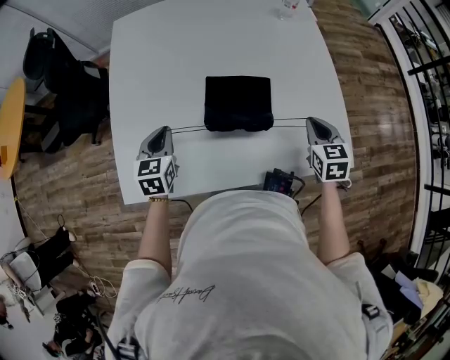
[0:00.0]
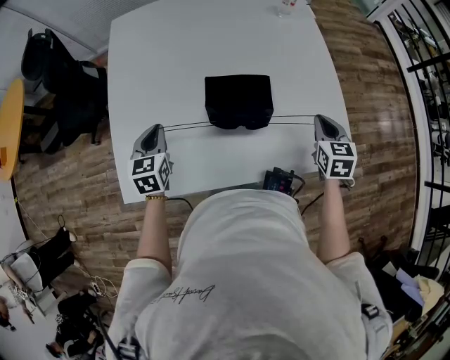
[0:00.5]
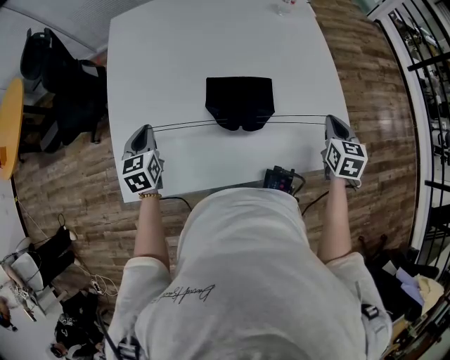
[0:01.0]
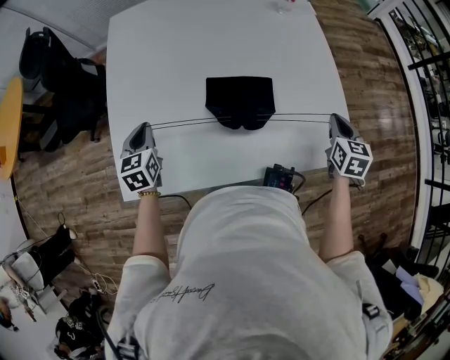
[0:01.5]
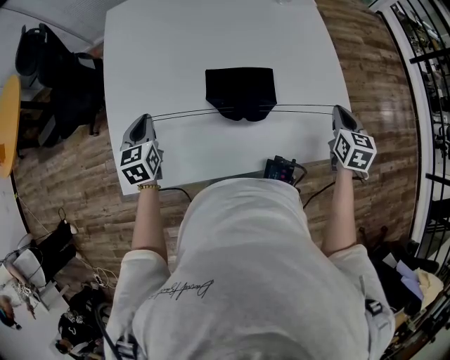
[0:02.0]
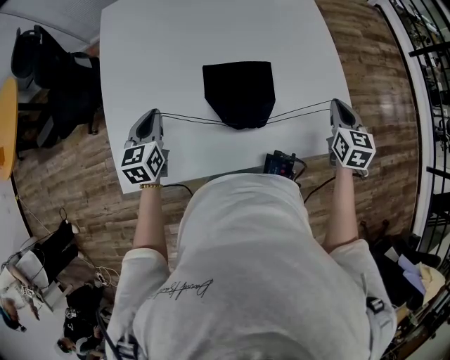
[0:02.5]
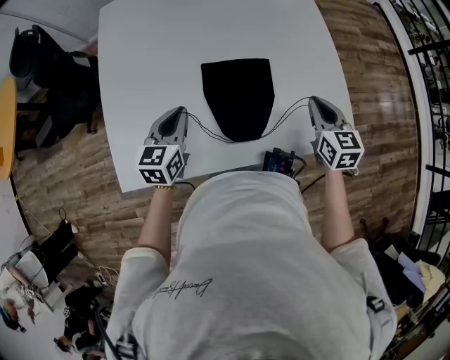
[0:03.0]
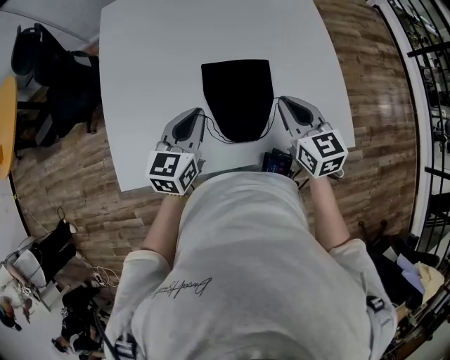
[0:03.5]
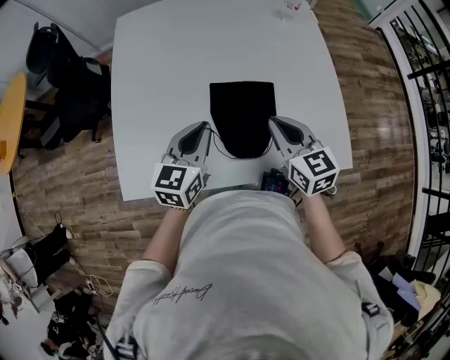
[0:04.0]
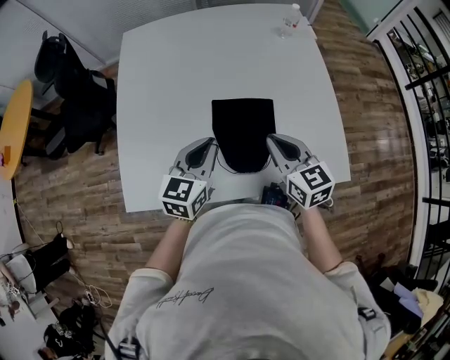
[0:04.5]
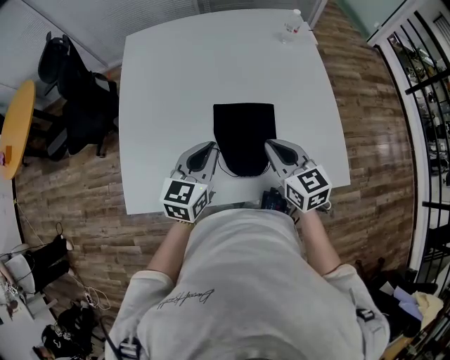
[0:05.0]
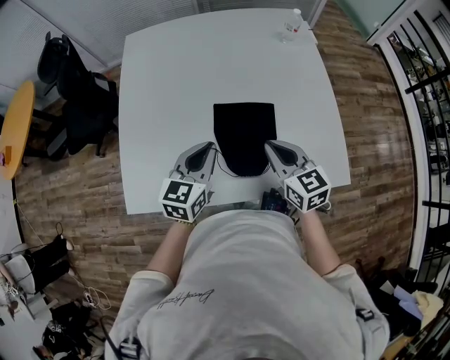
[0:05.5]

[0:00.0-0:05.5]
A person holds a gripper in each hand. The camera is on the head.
0:00.0 to 0:02.0: The left gripper heads to the left, covering approximately 5 cm. The right gripper is displaced to the right by roughly 10 cm.
0:02.0 to 0:03.5: The right gripper is displaced to the left by some 20 cm, and changes its angle by approximately 30 degrees; the left gripper heads to the right, covering approximately 20 cm, and swivels approximately 30 degrees.
0:03.5 to 0:05.5: The right gripper ends up about 5 cm from where it was.

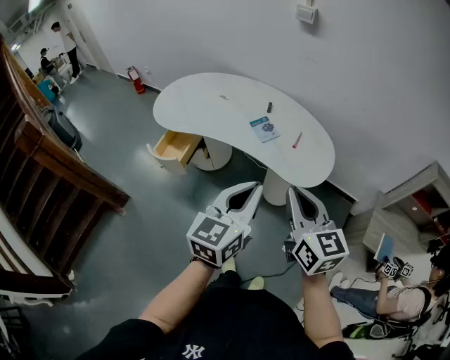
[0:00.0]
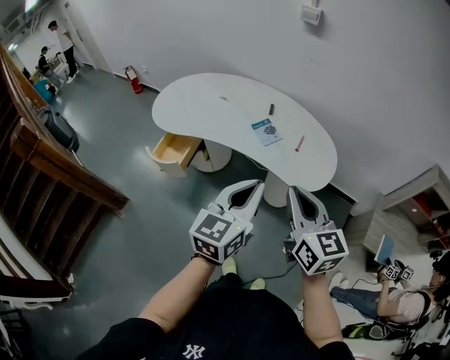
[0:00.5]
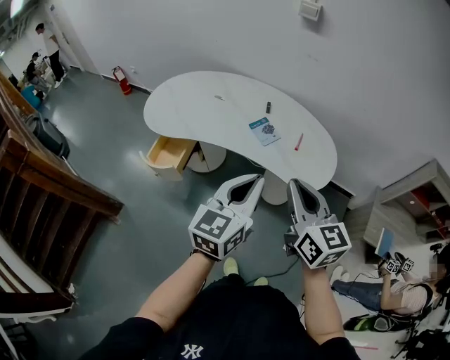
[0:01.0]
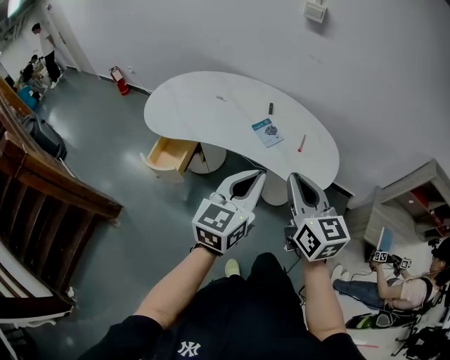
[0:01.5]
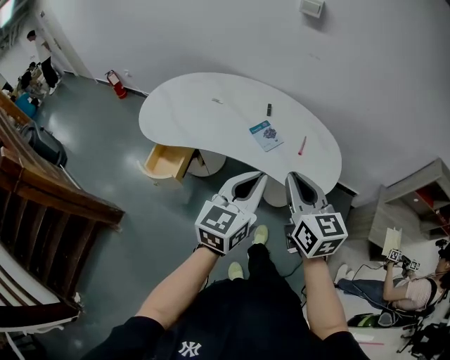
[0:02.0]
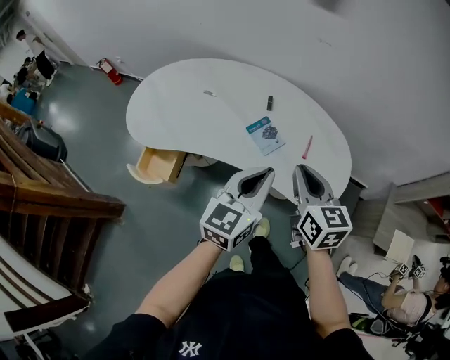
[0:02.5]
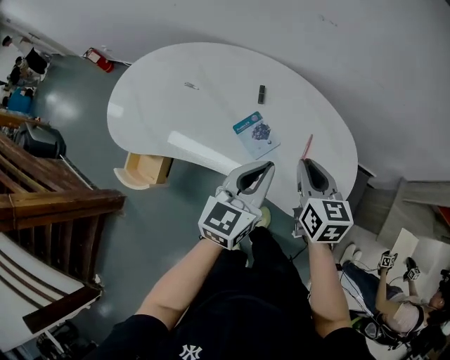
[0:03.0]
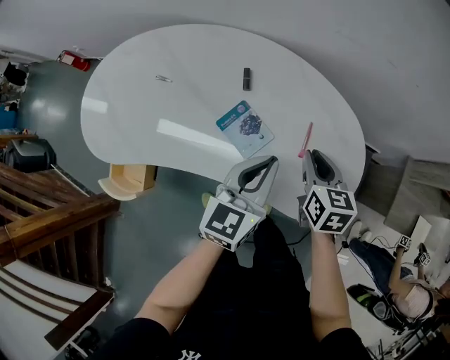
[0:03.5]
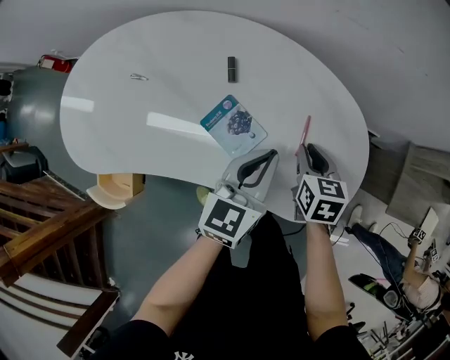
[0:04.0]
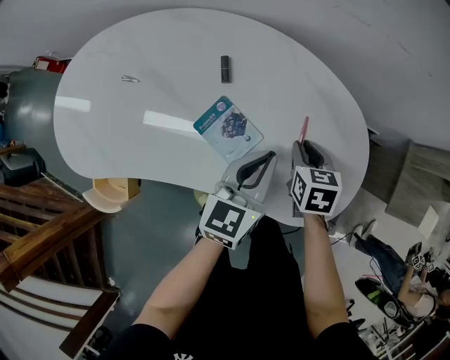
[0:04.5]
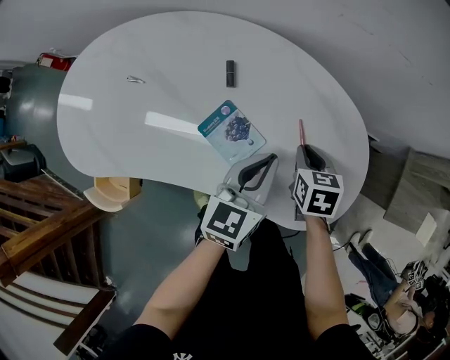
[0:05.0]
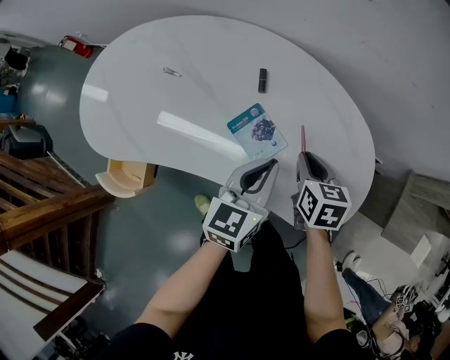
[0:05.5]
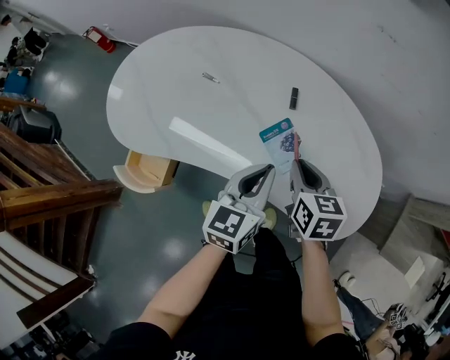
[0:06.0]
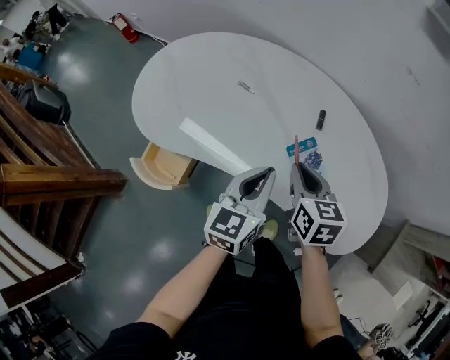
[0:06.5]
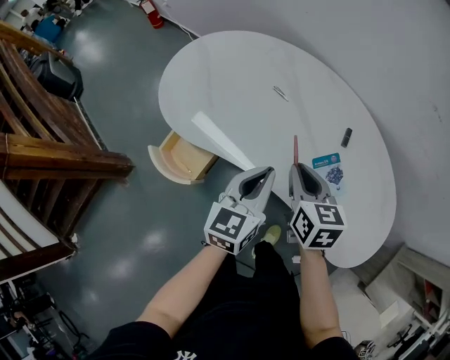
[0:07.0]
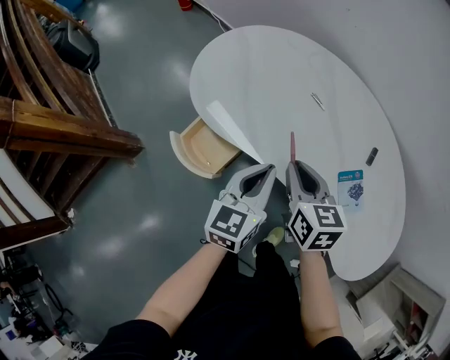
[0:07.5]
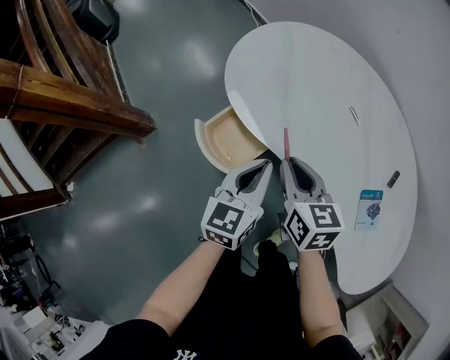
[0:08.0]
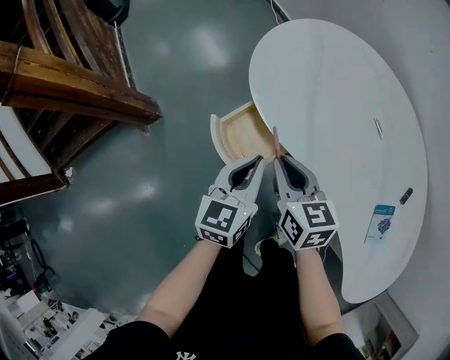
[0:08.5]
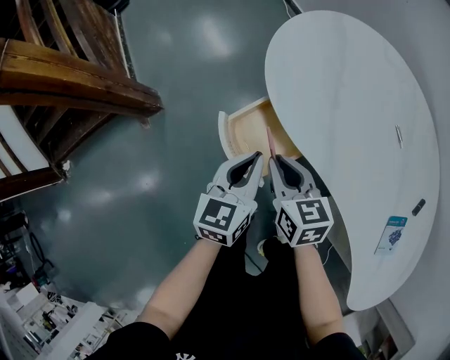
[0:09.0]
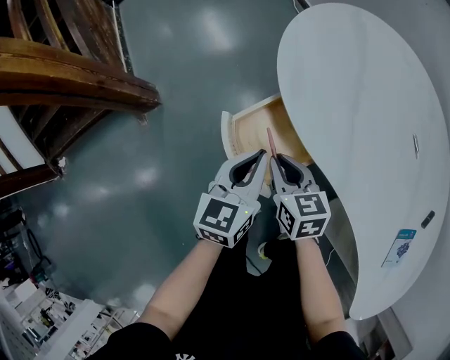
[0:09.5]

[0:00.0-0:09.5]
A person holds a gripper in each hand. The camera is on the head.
0:00.0 to 0:02.0: The grippers both shift forward and to the left by some 15 cm.
0:02.0 to 0:04.0: The right gripper travels downward and forward by about 50 cm, and angles its fingers downward, by roughly 40 degrees. The left gripper goes roughly 40 cm forward and downward.
0:04.0 to 0:05.5: The left gripper shifts by some 5 cm, while the right gripper shifts roughly 5 cm to the left.
0:05.5 to 0:07.5: The right gripper moves approximately 40 cm, and turns by about 30 degrees, while the left gripper shifts by some 35 cm, and rotates approximately 30 degrees.
0:07.5 to 0:09.5: The right gripper shifts approximately 35 cm to the left and downward, and turns by roughly 30 degrees. The left gripper heads to the left, downward and forward, covering roughly 30 cm, and swivels roughly 20 degrees.

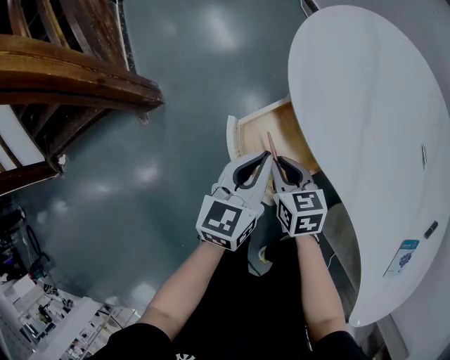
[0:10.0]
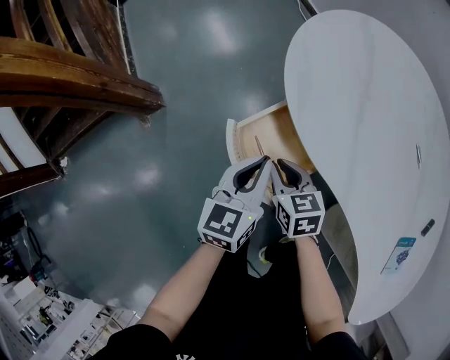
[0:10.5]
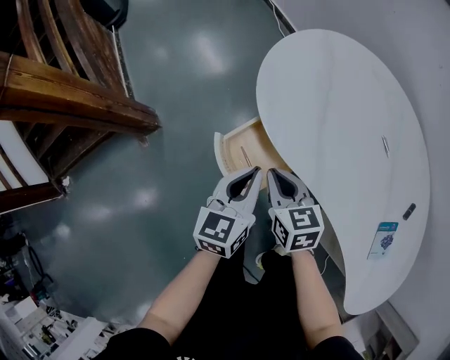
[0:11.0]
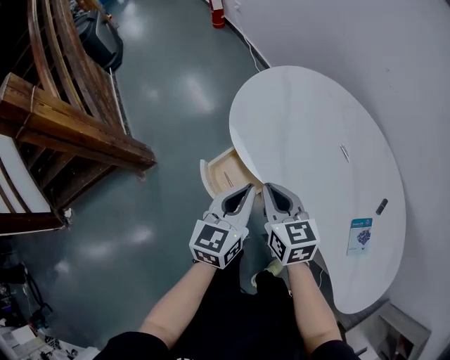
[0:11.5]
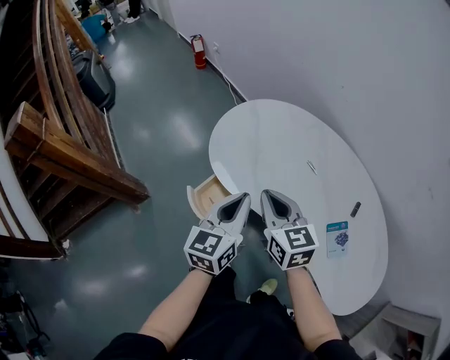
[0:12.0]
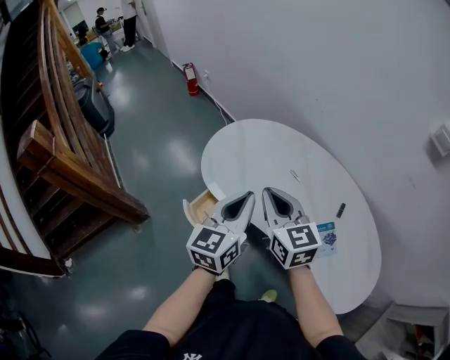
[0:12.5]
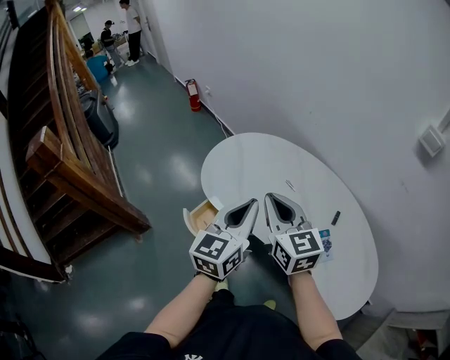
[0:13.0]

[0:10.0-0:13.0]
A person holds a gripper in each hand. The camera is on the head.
0:10.0 to 0:11.5: The two grippers go roughly 25 cm upward.
0:11.5 to 0:13.0: Both grippers move upward and to the right, roughly 25 cm. The right gripper changes its angle by approximately 20 degrees.

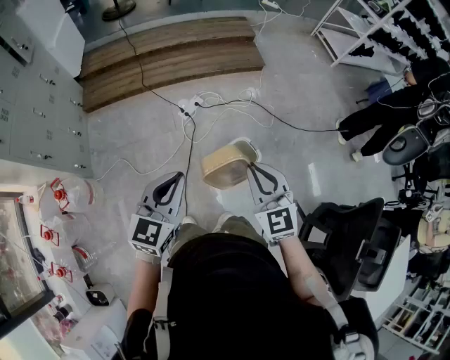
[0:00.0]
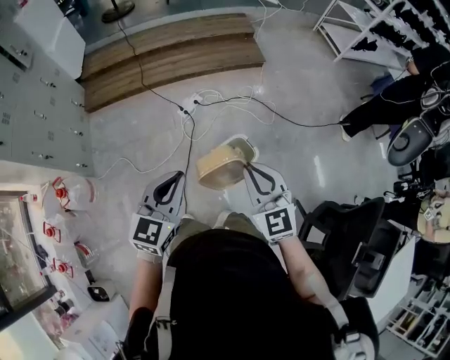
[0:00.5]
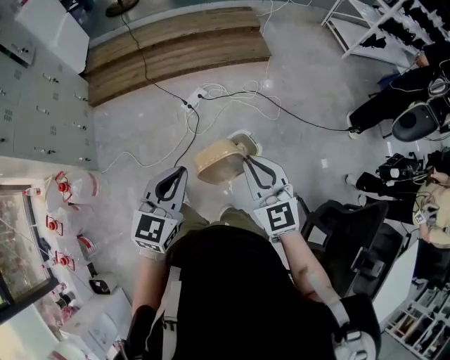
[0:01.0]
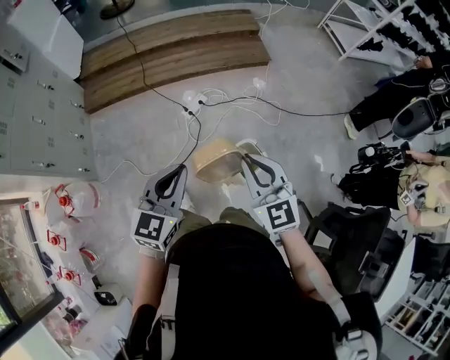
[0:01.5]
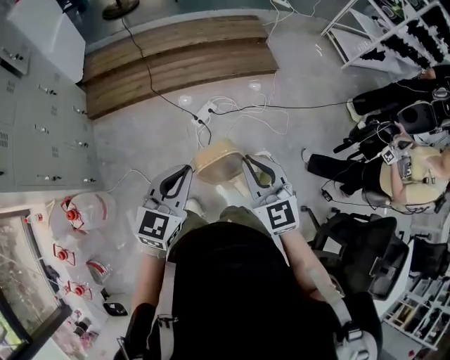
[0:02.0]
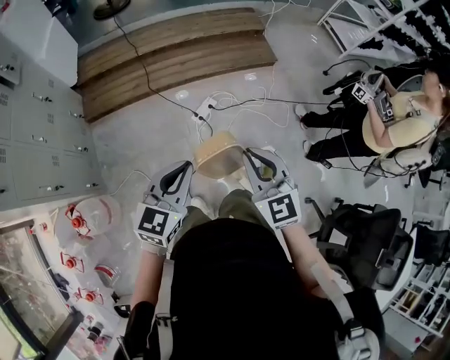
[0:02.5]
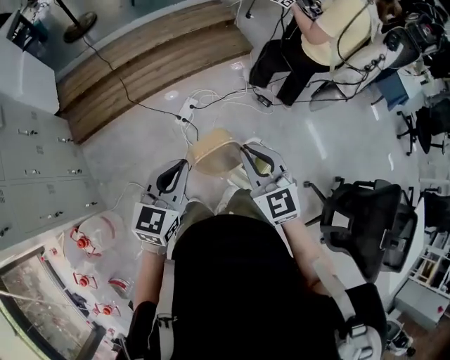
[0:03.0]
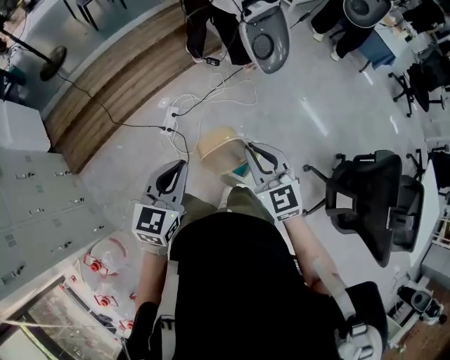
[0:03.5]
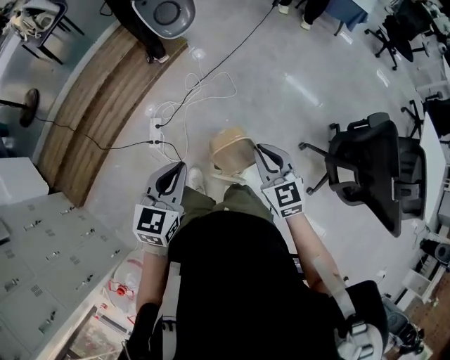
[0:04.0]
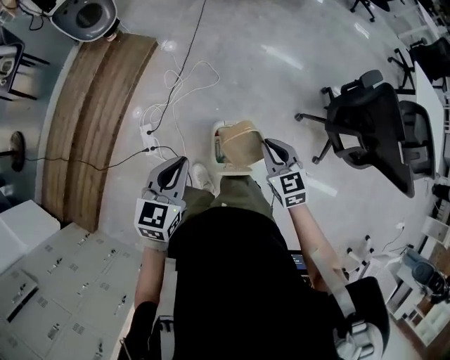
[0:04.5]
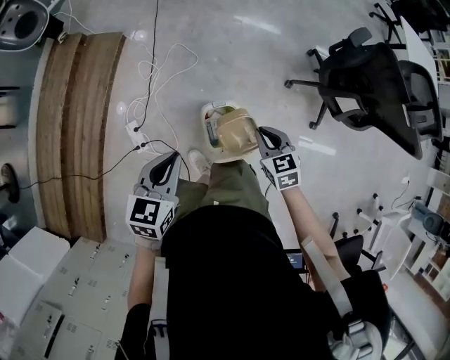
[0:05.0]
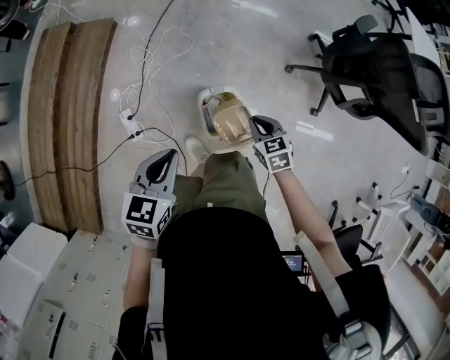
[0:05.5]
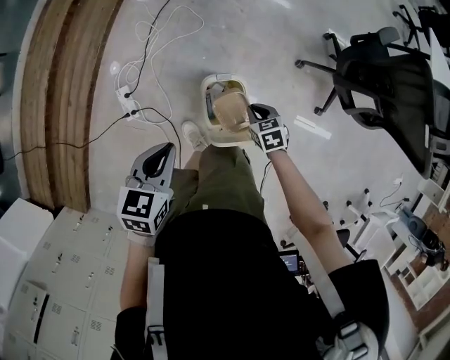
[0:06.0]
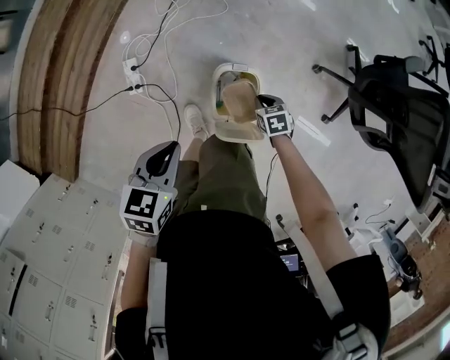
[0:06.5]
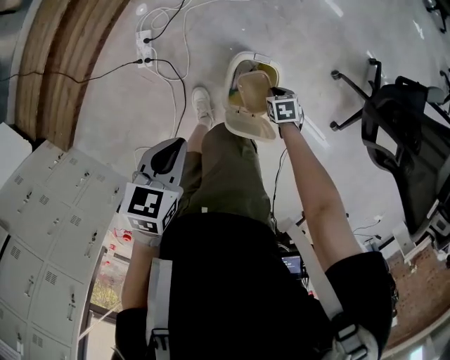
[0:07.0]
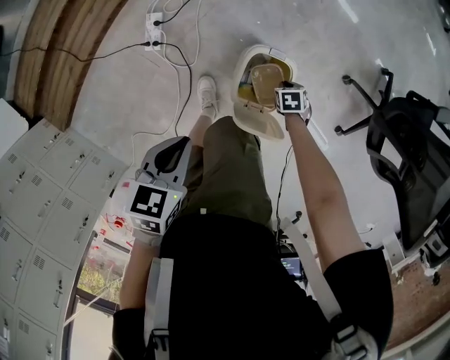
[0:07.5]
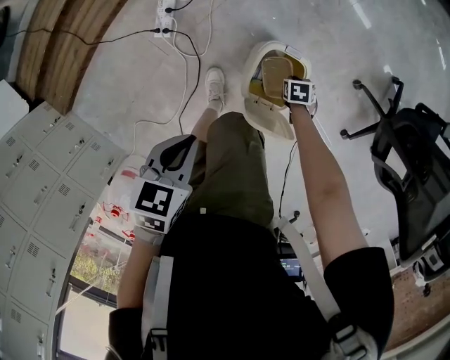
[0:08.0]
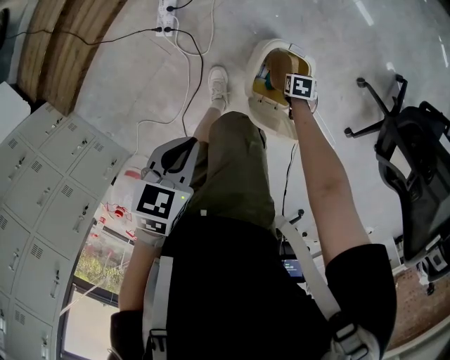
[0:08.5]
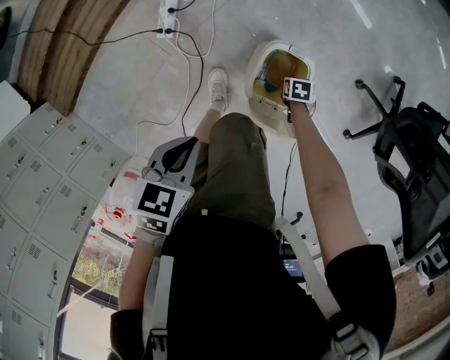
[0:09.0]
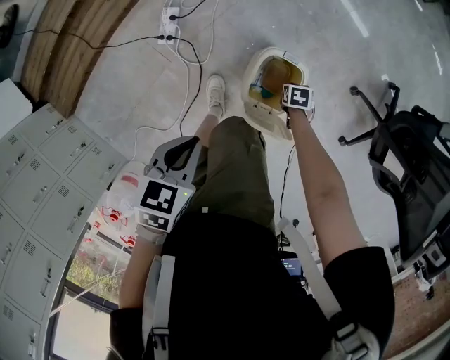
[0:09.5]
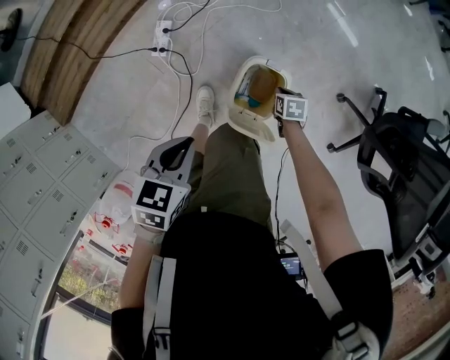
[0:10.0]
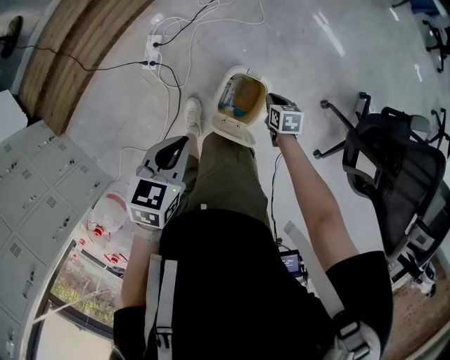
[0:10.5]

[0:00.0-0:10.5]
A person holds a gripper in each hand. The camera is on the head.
0:00.0 to 0:02.0: The grippers both shift forward and to the left by approximately 20 cm.
0:02.0 to 0:04.0: The right gripper moves approximately 30 cm, and turns by about 40 degrees, while the left gripper changes place by roughly 30 cm, and swivels approximately 30 degrees.
0:04.0 to 0:06.5: The left gripper is displaced downward by about 20 cm, and swivels roughly 30 degrees. Meanwhile the right gripper goes some 40 cm downward, and tilts its fingers some 40 degrees downward.
0:06.5 to 0:08.5: The left gripper shifts by roughly 10 cm; the right gripper moves downward, some 15 cm.
0:08.5 to 0:10.5: The left gripper heads upward, covering about 10 cm. Meanwhile the right gripper shifts some 20 cm upward, and turns by roughly 20 degrees.
